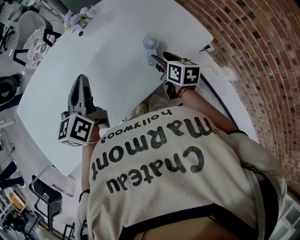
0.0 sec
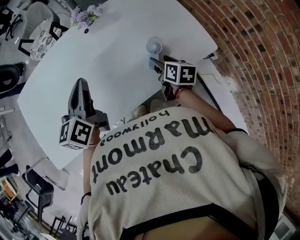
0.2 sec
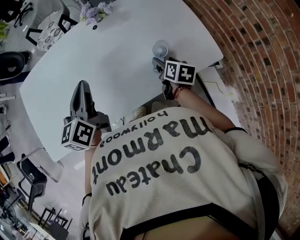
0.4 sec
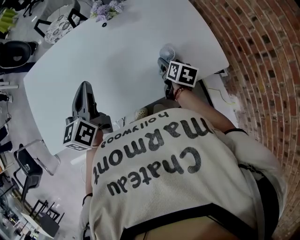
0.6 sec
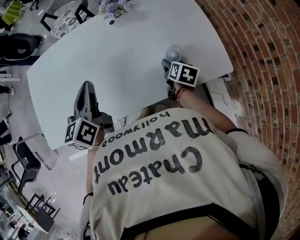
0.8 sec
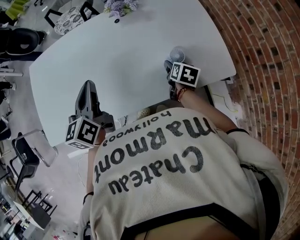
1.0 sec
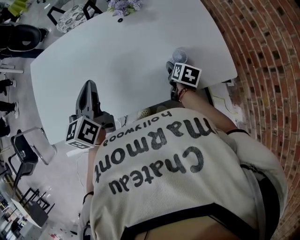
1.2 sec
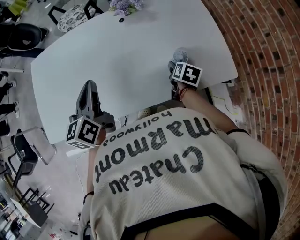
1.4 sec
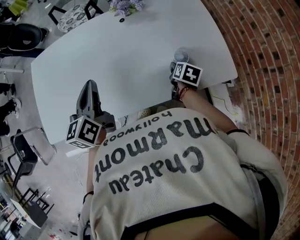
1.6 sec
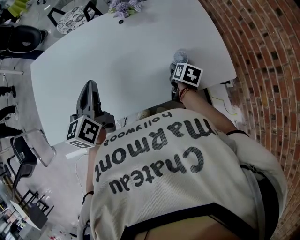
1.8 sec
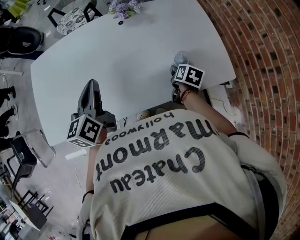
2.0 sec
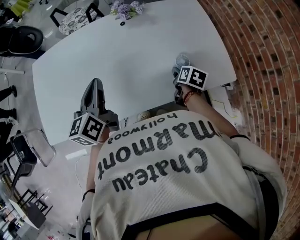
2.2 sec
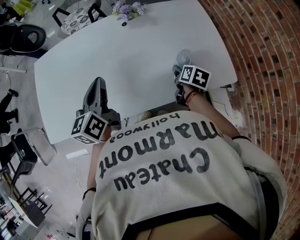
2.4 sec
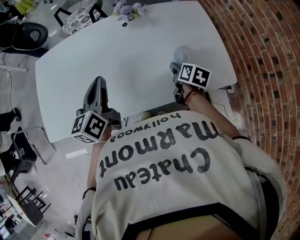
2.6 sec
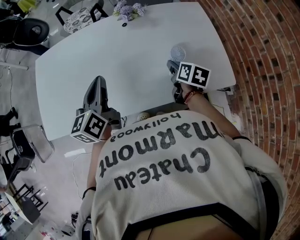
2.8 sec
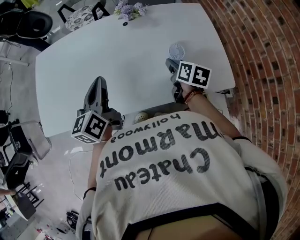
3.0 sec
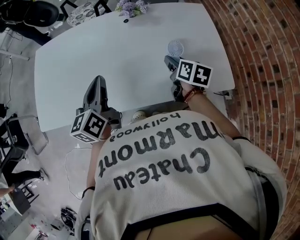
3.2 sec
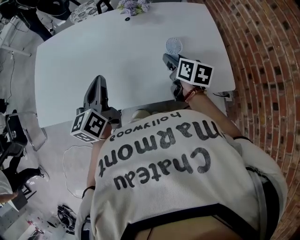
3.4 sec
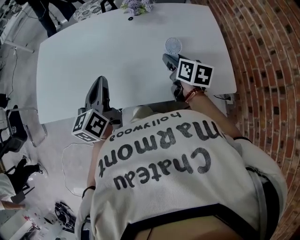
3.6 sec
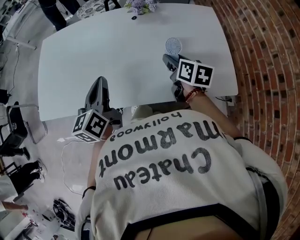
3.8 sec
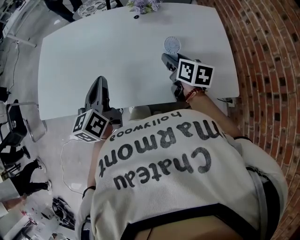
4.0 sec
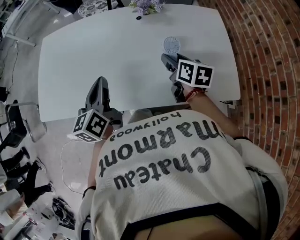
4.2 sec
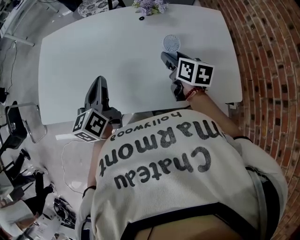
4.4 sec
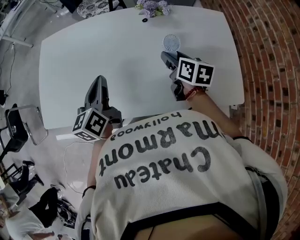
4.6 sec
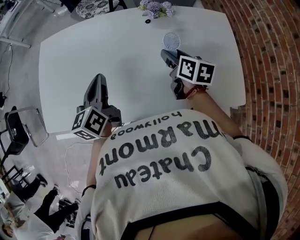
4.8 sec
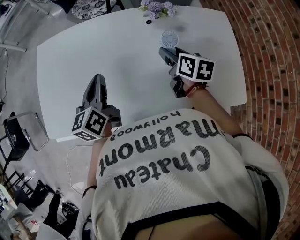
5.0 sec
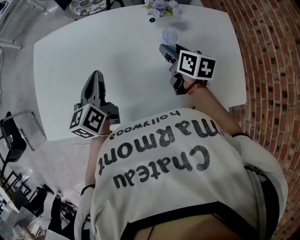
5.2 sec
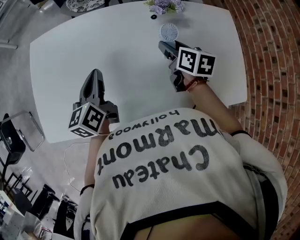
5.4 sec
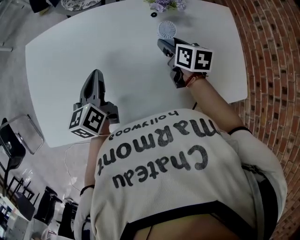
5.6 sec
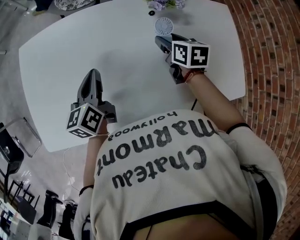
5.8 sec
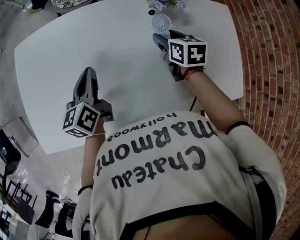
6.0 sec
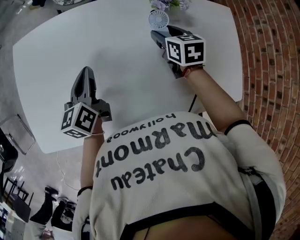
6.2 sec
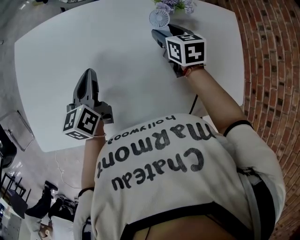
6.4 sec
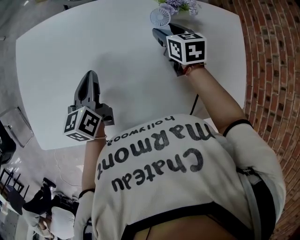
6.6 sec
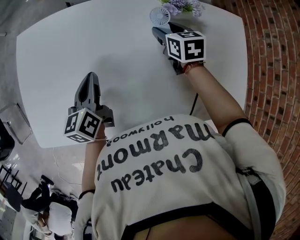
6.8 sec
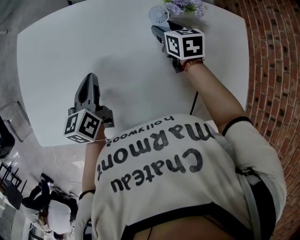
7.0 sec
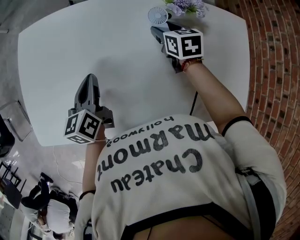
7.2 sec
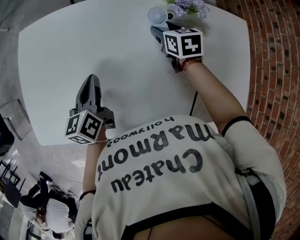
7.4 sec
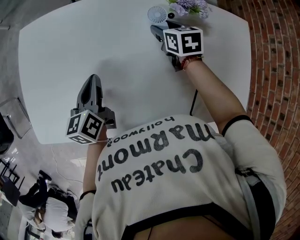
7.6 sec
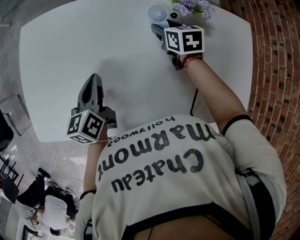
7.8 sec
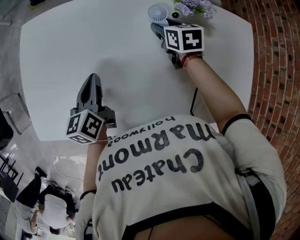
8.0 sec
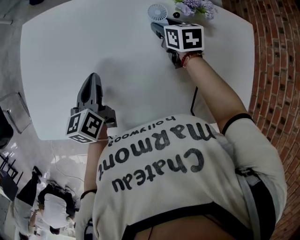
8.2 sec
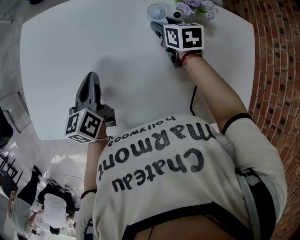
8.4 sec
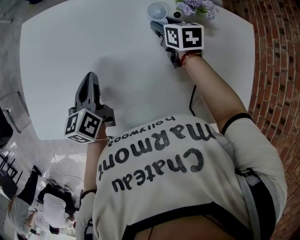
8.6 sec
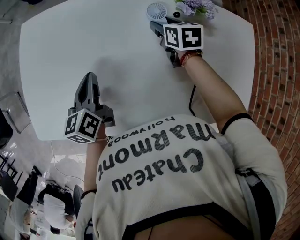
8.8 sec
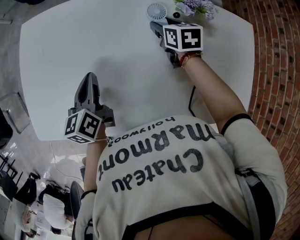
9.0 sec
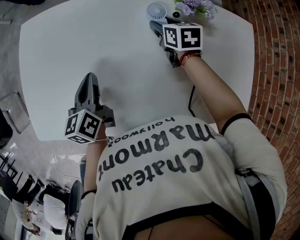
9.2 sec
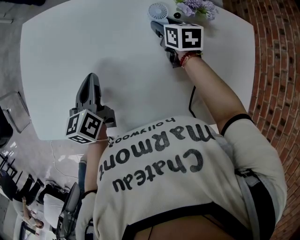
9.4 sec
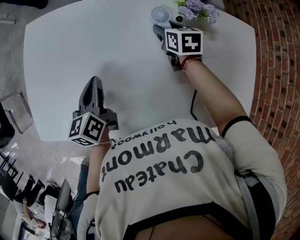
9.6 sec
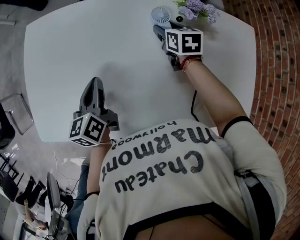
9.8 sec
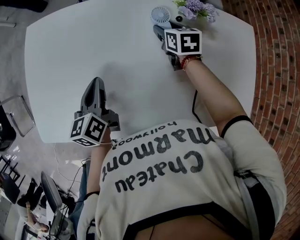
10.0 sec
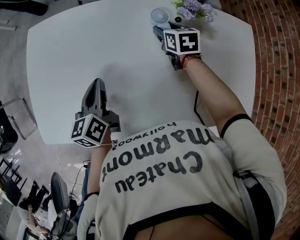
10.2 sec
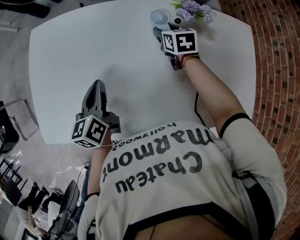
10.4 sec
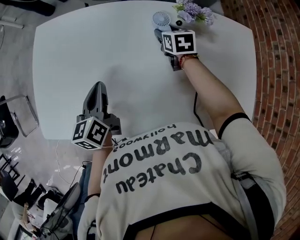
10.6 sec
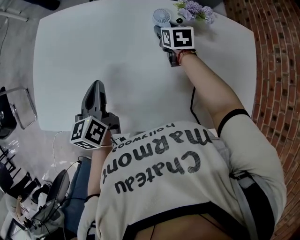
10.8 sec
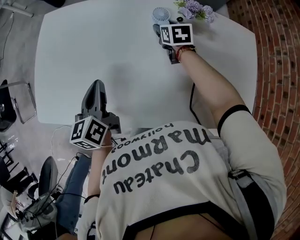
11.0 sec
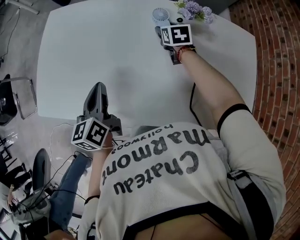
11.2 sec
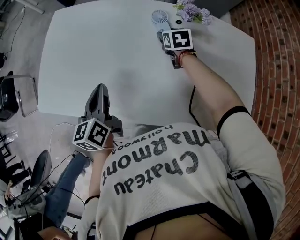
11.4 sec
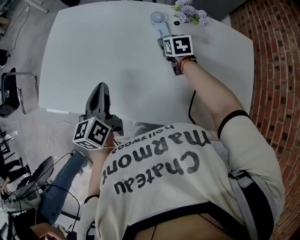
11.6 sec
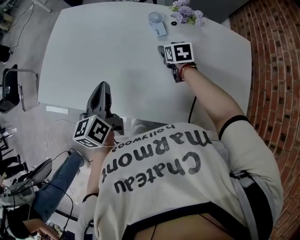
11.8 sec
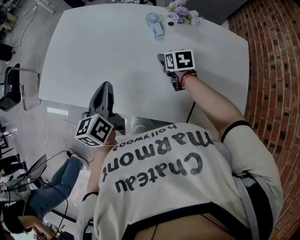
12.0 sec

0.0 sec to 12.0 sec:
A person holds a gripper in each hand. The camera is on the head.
0.0 sec to 1.6 sec: The right gripper shifts some 5 cm downward. The left gripper moves to the left and backward, some 10 cm, and turns by roughly 20 degrees.
1.6 sec to 3.0 sec: The right gripper goes about 10 cm upward; the left gripper travels to the right by approximately 5 cm.
3.0 sec to 4.4 sec: The right gripper travels to the left and forward by some 10 cm. Meanwhile the left gripper changes place by roughly 5 cm.
4.4 sec to 6.0 sec: The left gripper shifts about 20 cm forward, to the left and downward. Meanwhile the right gripper heads forward and to the left, covering approximately 20 cm.
6.0 sec to 7.6 sec: The right gripper goes about 5 cm forward.
7.6 sec to 10.4 sec: The grippers move only a little.
10.4 sec to 12.0 sec: The right gripper shifts about 15 cm backward. The left gripper is displaced backward, upward and to the right by roughly 20 cm.

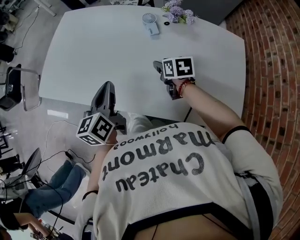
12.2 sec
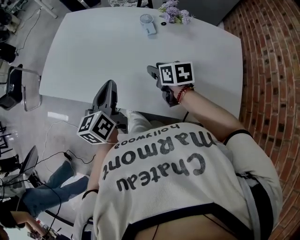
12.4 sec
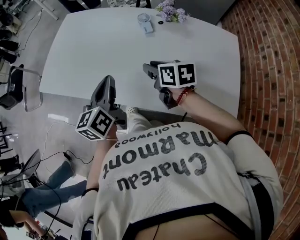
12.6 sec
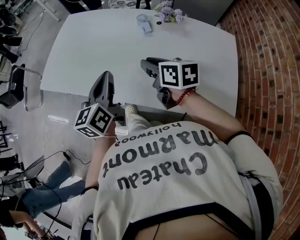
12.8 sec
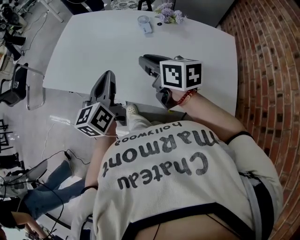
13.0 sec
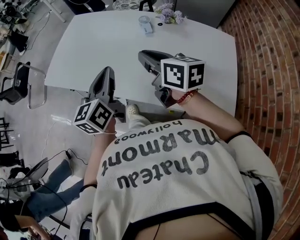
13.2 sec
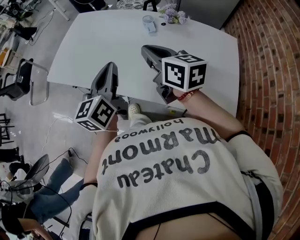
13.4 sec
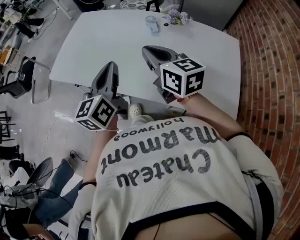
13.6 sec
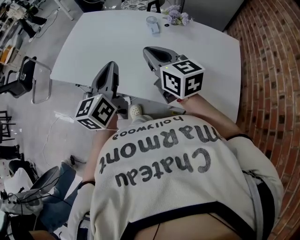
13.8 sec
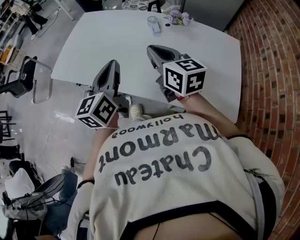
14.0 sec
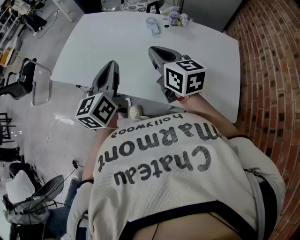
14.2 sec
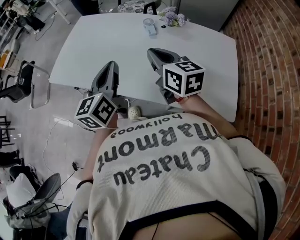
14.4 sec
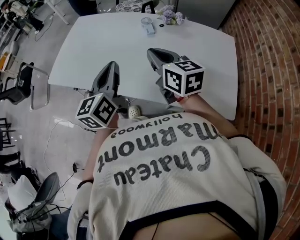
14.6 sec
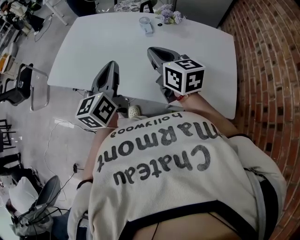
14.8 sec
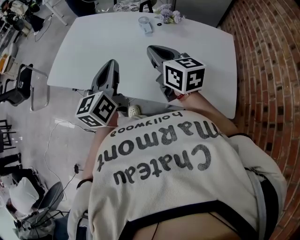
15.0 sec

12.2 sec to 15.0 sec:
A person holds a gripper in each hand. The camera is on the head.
12.2 sec to 13.6 sec: The right gripper shifts about 25 cm upward and backward, points its fingers some 40 degrees further upward, and closes; the left gripper shifts some 15 cm upward and backward.
13.6 sec to 15.0 sec: There are only small adjustments of the grippers.

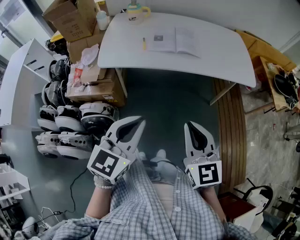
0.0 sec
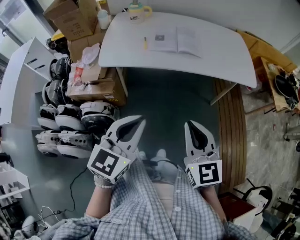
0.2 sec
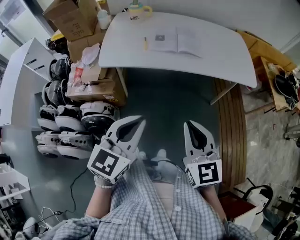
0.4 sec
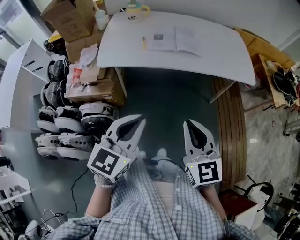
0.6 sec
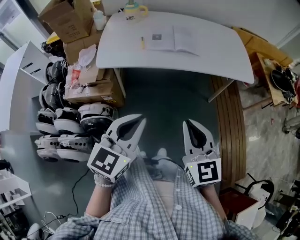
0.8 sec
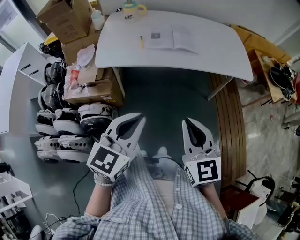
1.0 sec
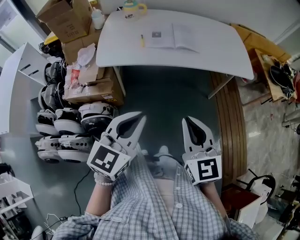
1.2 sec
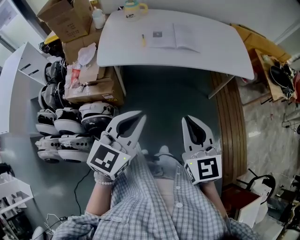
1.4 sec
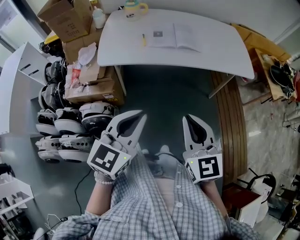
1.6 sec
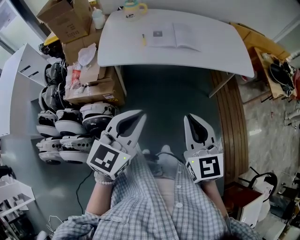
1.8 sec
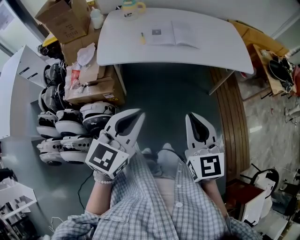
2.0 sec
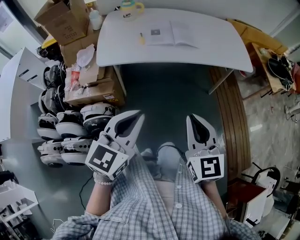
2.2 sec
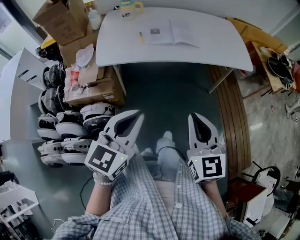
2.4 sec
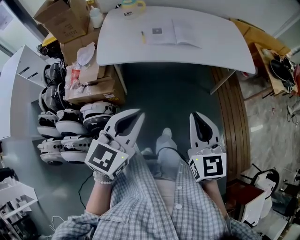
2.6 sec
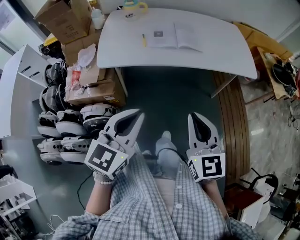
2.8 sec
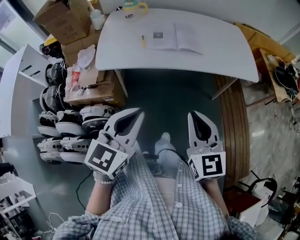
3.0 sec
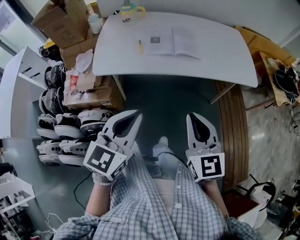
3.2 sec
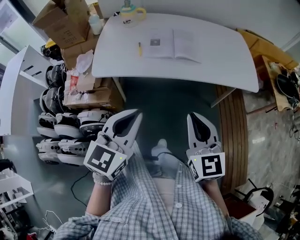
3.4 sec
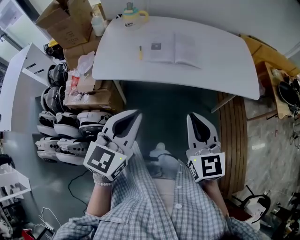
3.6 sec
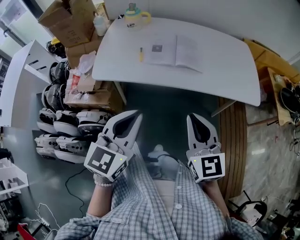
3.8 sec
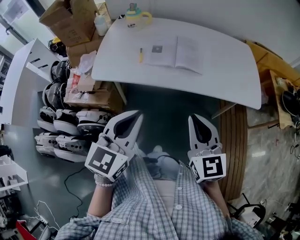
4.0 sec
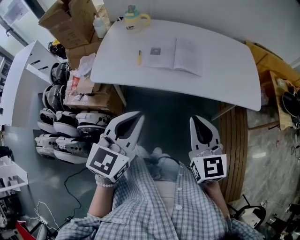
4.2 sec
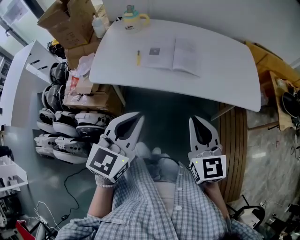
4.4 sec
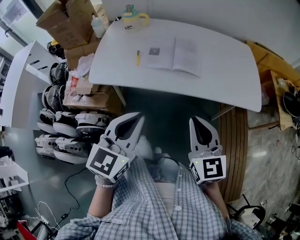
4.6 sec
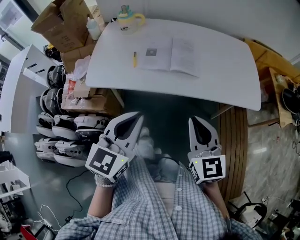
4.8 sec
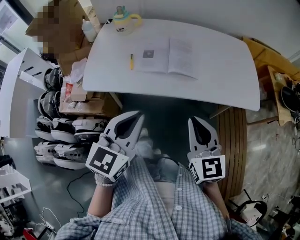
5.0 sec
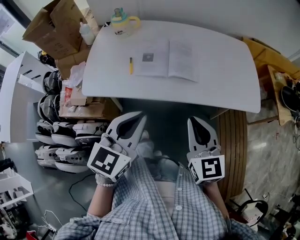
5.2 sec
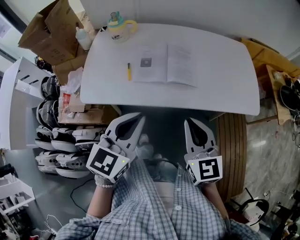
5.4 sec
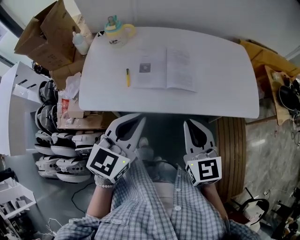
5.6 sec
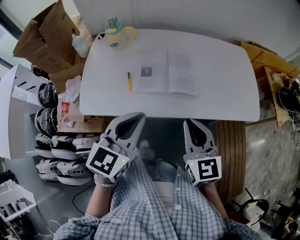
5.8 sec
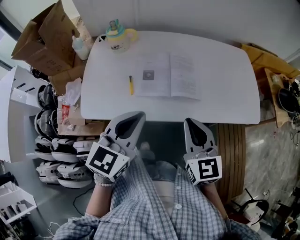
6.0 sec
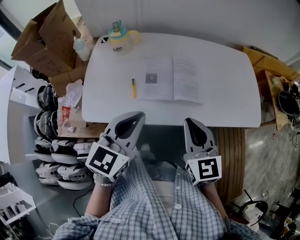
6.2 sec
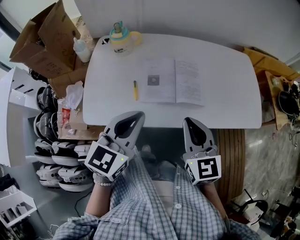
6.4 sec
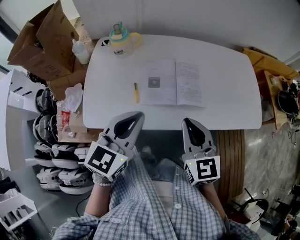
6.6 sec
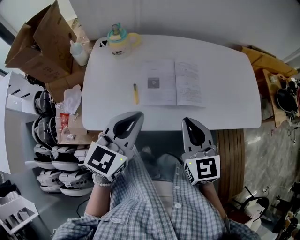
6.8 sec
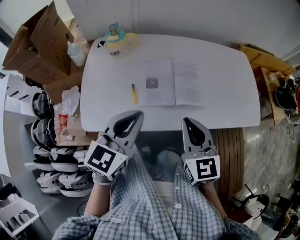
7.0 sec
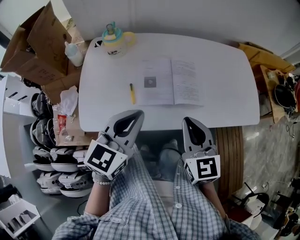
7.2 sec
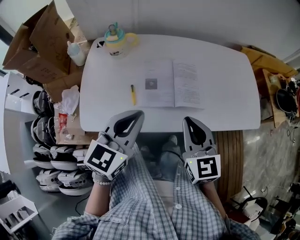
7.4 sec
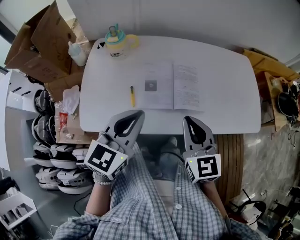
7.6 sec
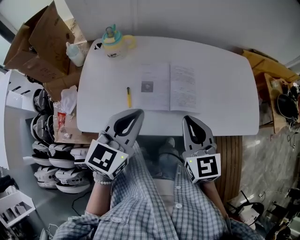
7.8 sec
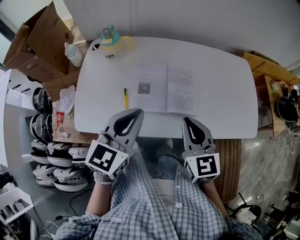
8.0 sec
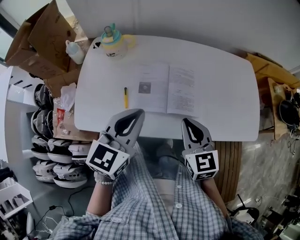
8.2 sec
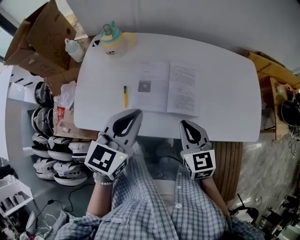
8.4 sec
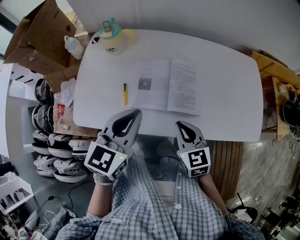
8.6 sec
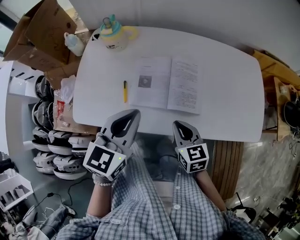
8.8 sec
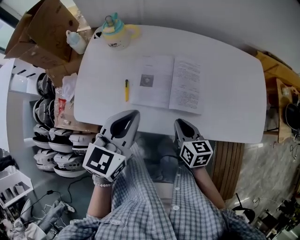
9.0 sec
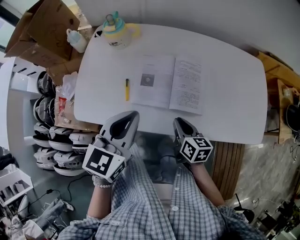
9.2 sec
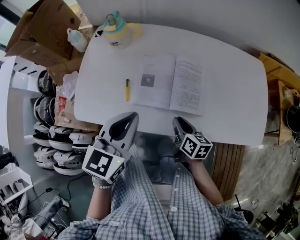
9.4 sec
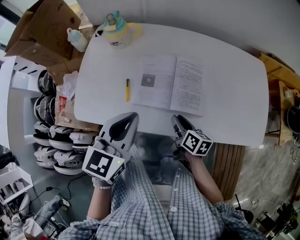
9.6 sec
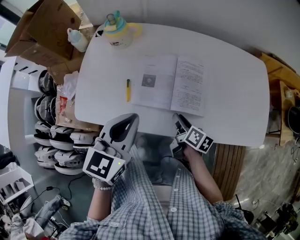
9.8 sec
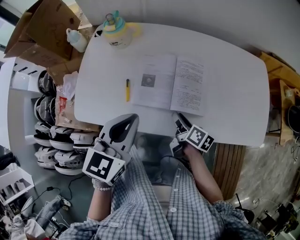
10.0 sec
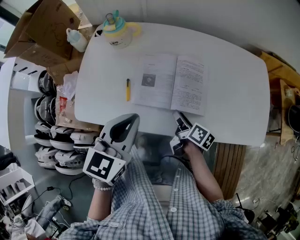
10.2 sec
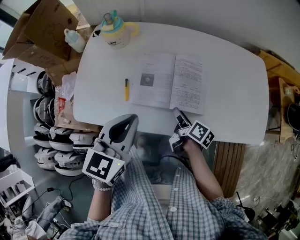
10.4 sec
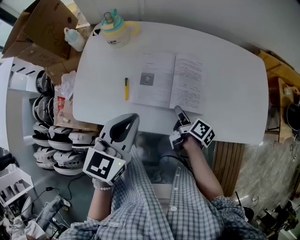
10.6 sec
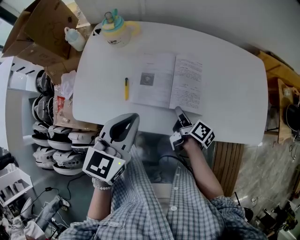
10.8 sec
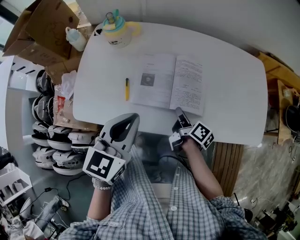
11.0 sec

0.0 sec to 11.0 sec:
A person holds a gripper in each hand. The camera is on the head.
0.0 sec to 1.6 sec: The grippers make only small movements.
1.6 sec to 3.2 sec: Both grippers move forward, some 10 cm.
3.2 sec to 4.8 sec: The two grippers go roughly 15 cm forward and to the right.
4.8 sec to 6.2 sec: The left gripper shifts about 15 cm forward. The right gripper goes approximately 15 cm forward and to the left.
6.2 sec to 7.8 sec: Both grippers travel together forward, about 5 cm.
7.8 sec to 9.4 sec: The right gripper travels downward by approximately 20 cm, and twists roughly 40 degrees clockwise, seen from behind.
9.4 sec to 11.0 sec: The right gripper turns by some 30 degrees, and opens, then closes once more.
